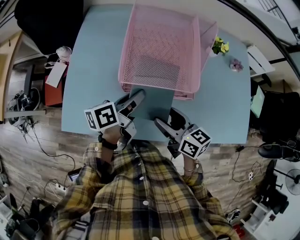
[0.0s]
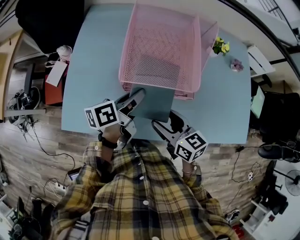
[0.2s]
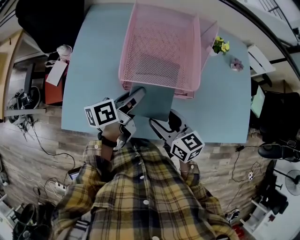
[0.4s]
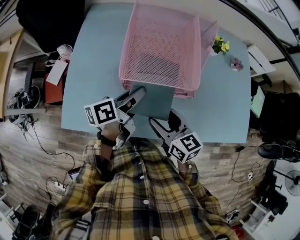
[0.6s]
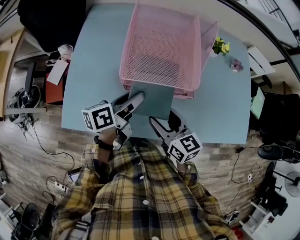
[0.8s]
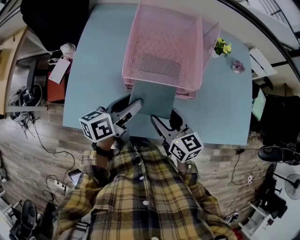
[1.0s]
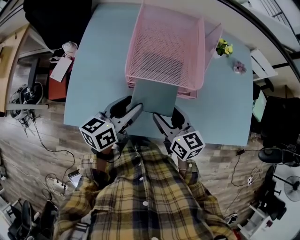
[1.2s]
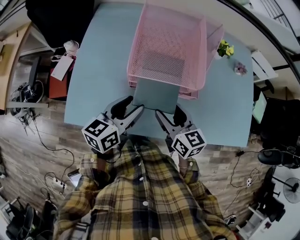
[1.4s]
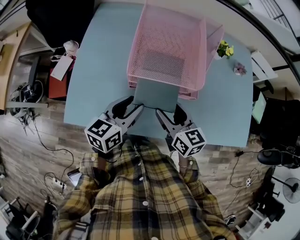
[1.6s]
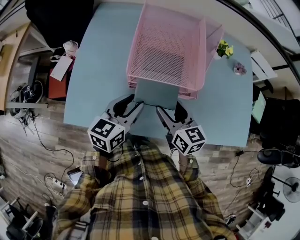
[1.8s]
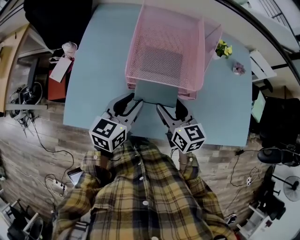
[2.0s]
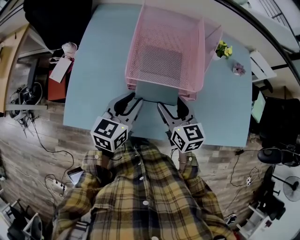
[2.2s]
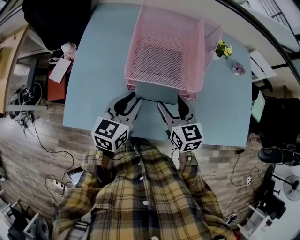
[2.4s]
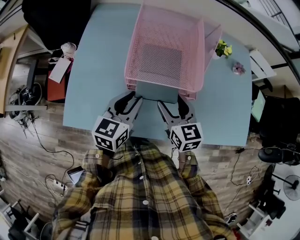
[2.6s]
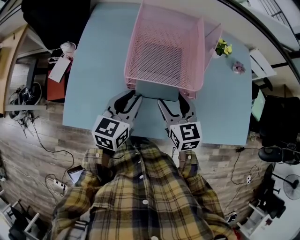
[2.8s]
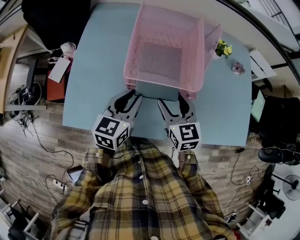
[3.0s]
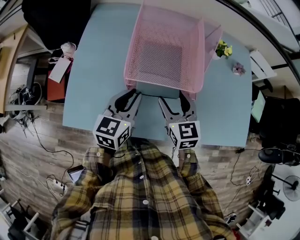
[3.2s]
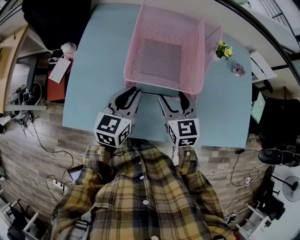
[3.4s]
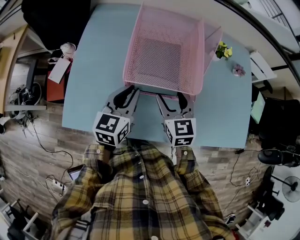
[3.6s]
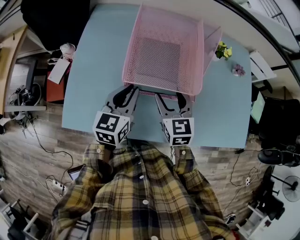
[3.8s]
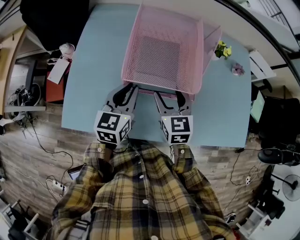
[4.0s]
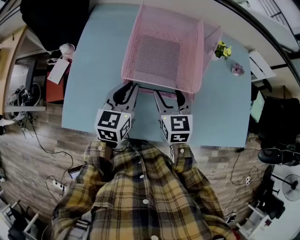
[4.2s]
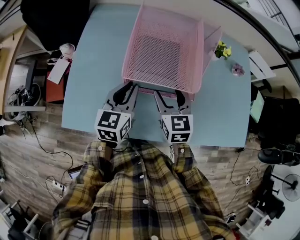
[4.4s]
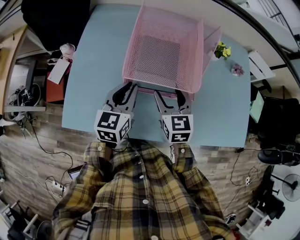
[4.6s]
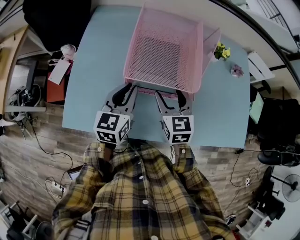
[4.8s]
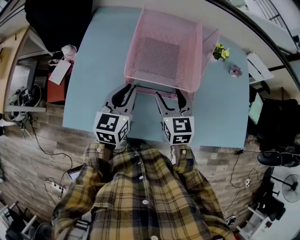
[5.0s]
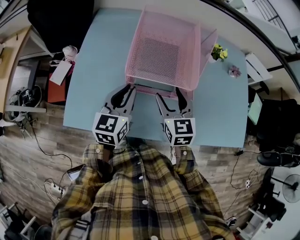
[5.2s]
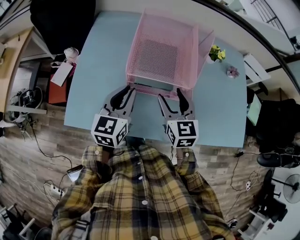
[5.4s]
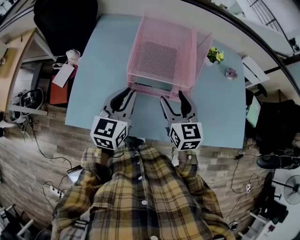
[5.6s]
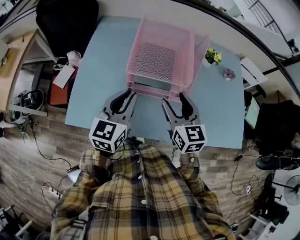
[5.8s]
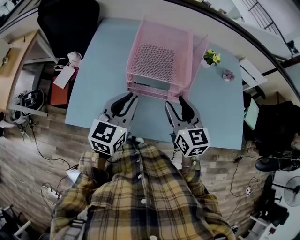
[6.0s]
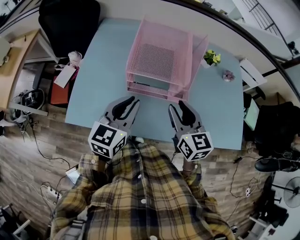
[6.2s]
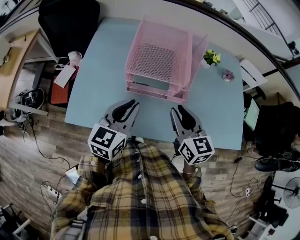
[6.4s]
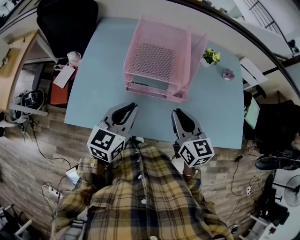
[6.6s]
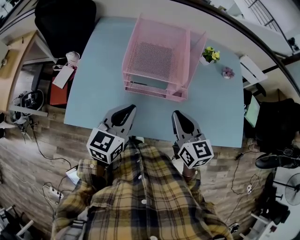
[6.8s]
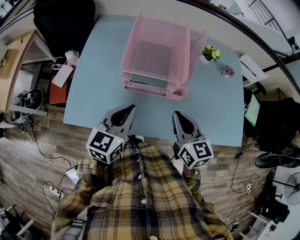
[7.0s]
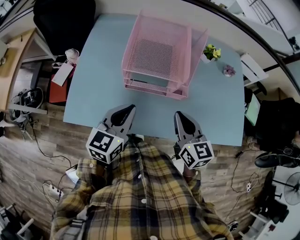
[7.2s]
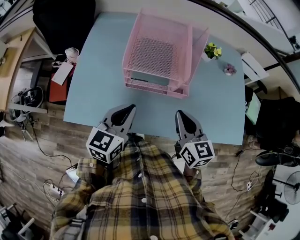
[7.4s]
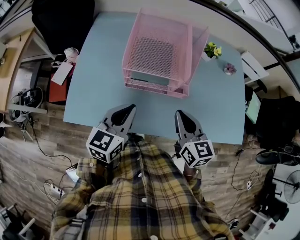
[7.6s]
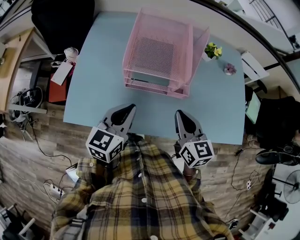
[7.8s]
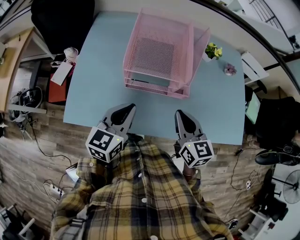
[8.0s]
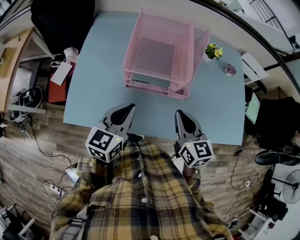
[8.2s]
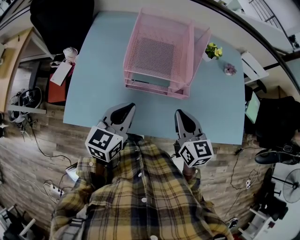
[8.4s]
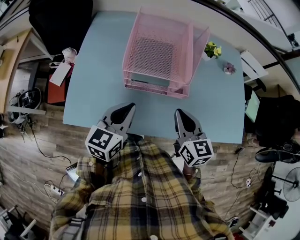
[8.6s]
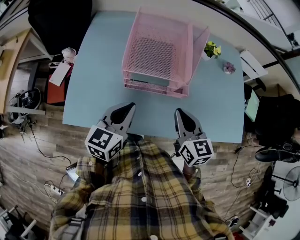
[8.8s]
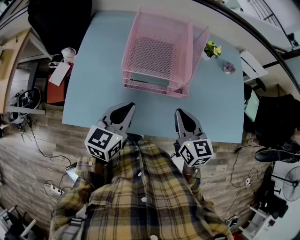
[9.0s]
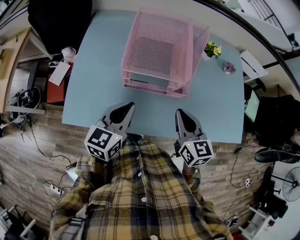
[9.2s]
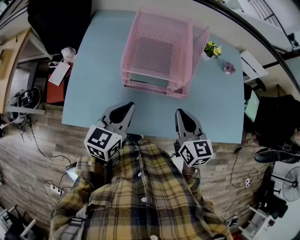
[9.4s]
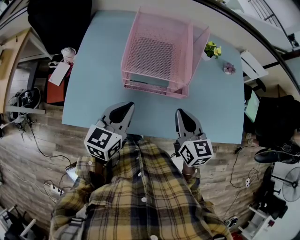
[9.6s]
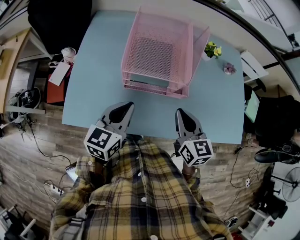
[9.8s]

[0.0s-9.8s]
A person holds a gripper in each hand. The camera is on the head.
0.0s to 1.4s: The left gripper goes approximately 5 cm backward, turns by about 30 degrees, and opens.
1.4s to 2.8s: The left gripper closes its fingers.
2.8s to 4.2s: There are only small adjustments of the grippers.
4.2s to 5.6s: The right gripper shifts some 5 cm upward and backward, while the left gripper shifts some 10 cm backward and upward.
5.6s to 7.0s: The two grippers go approximately 5 cm backward. The right gripper closes.
7.0s to 8.4s: The grippers stay close to where they were, moving slightly.
8.4s to 9.8s: Both grippers stay about where they are.

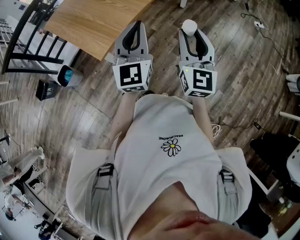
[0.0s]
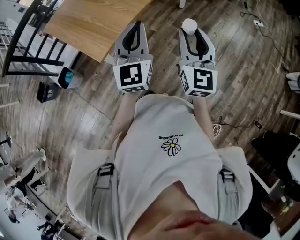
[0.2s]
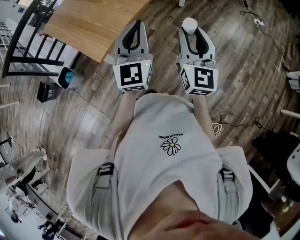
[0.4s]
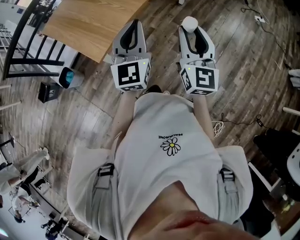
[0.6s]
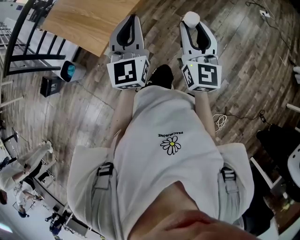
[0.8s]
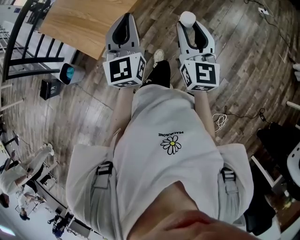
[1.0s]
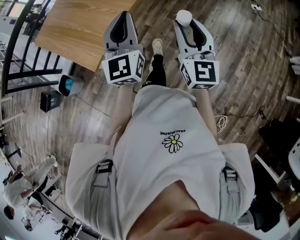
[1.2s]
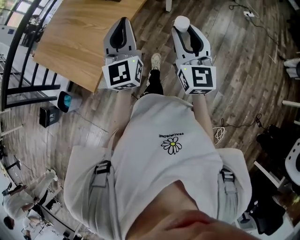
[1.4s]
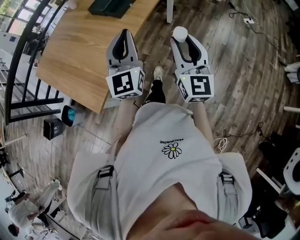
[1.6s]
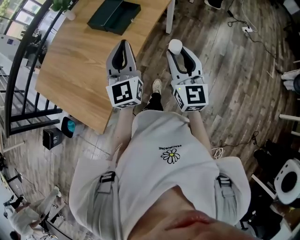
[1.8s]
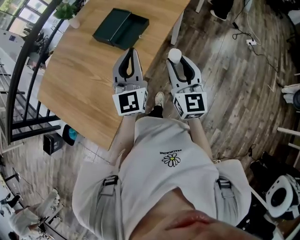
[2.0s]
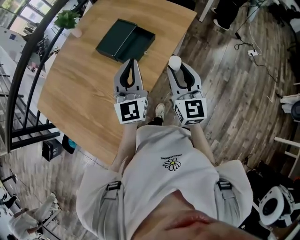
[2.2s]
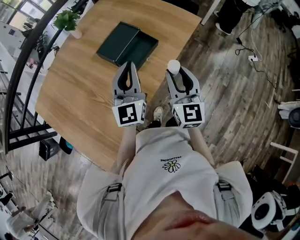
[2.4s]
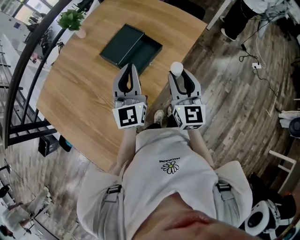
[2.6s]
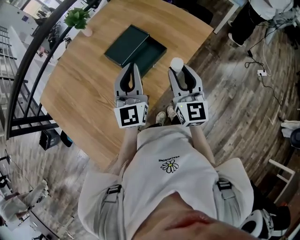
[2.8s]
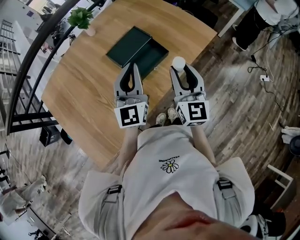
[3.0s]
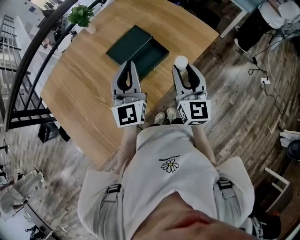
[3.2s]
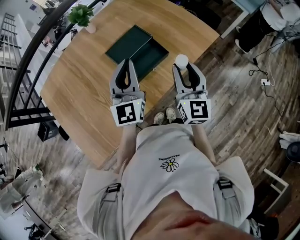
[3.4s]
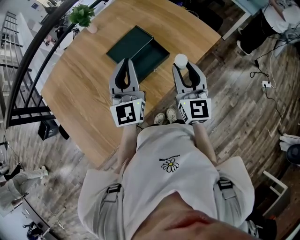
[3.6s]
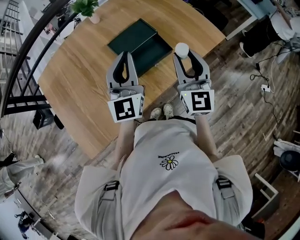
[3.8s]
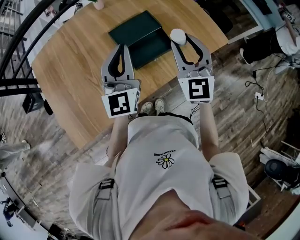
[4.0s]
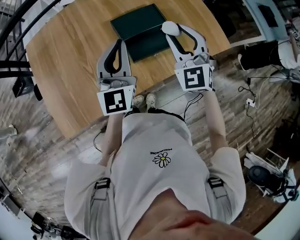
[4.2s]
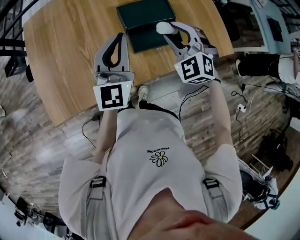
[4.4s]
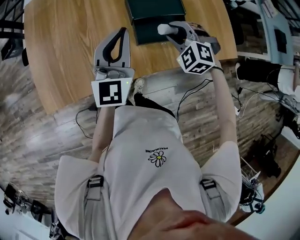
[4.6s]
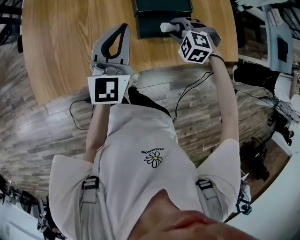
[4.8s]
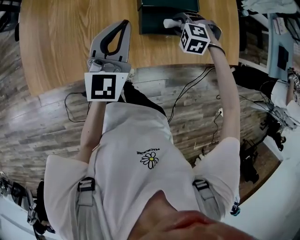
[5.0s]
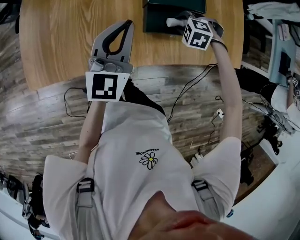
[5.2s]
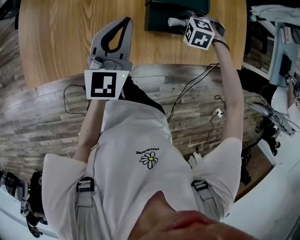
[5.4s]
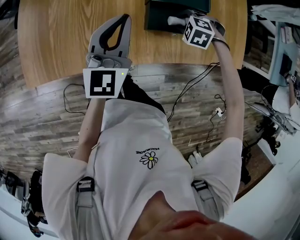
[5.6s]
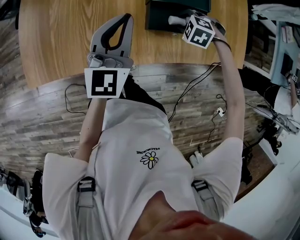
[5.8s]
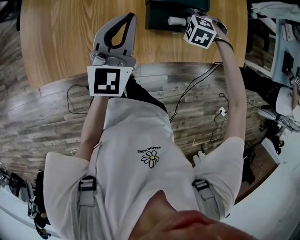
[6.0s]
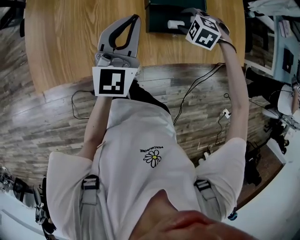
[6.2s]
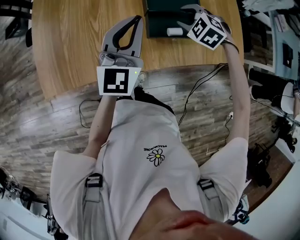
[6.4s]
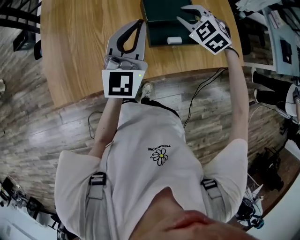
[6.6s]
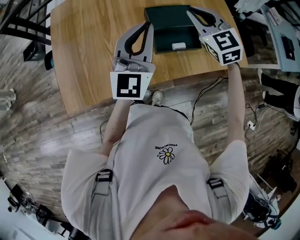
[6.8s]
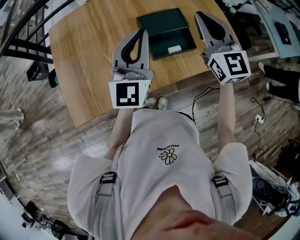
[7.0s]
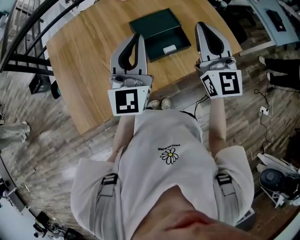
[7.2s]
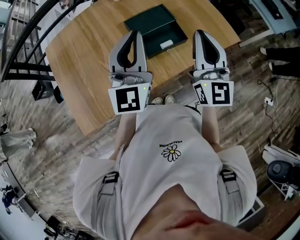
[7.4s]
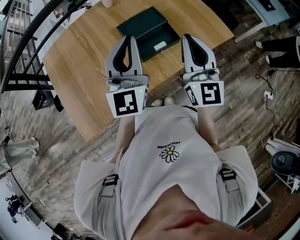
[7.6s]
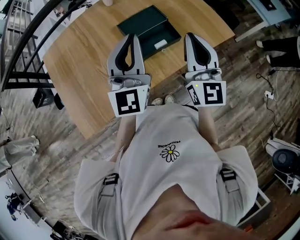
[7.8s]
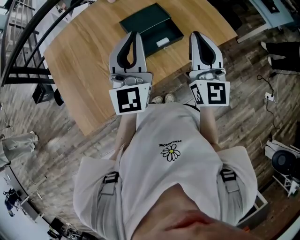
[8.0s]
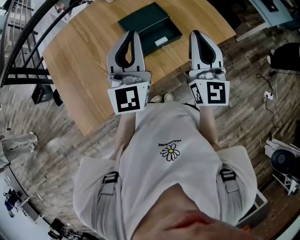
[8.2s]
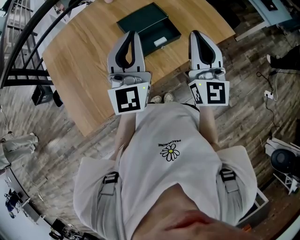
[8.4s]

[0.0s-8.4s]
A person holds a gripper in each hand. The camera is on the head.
0.0s to 1.4s: The grippers both shift forward by roughly 10 cm.
1.4s to 2.8s: Both grippers travel together forward, approximately 40 cm.
2.8s to 4.2s: The left gripper moves roughly 5 cm, and rotates roughly 20 degrees; the right gripper moves some 15 cm, and swivels some 50 degrees.
4.2s to 5.6s: The right gripper heads downward, covering approximately 30 cm, and tips its fingers downward by roughly 70 degrees, while the left gripper travels downward by some 10 cm.
5.6s to 7.0s: The left gripper travels upward by some 15 cm, and turns by some 20 degrees, while the right gripper moves upward, roughly 40 cm, angles its fingers upward, by approximately 80 degrees, and closes its fingers.
7.0s to 8.4s: The left gripper is displaced to the right by approximately 5 cm. Meanwhile the right gripper travels backward and to the right by approximately 15 cm, and turns by about 30 degrees.

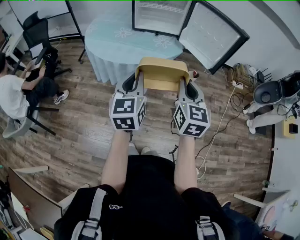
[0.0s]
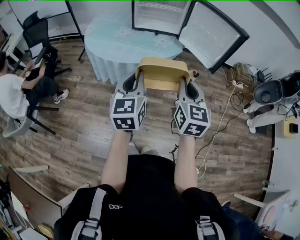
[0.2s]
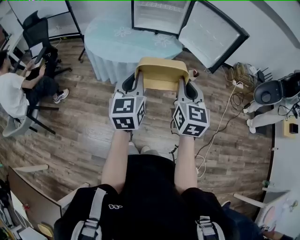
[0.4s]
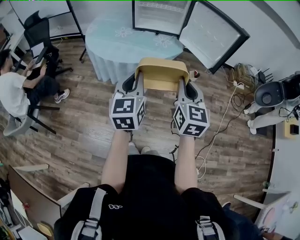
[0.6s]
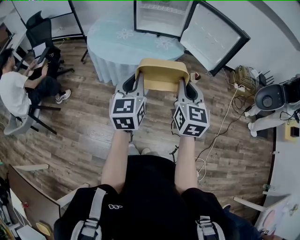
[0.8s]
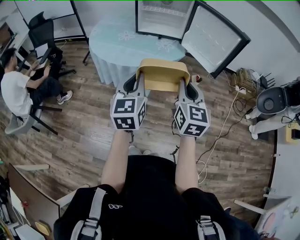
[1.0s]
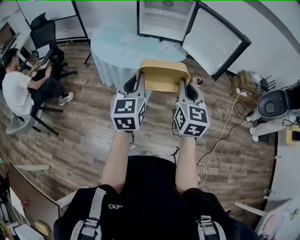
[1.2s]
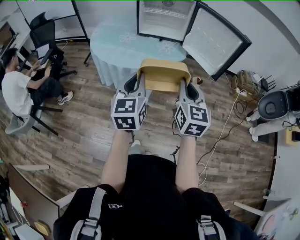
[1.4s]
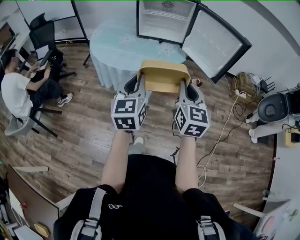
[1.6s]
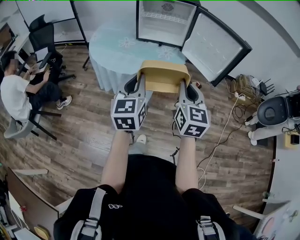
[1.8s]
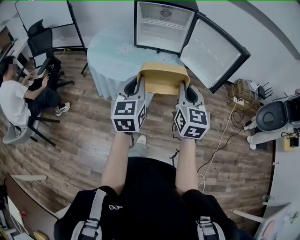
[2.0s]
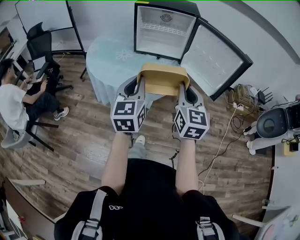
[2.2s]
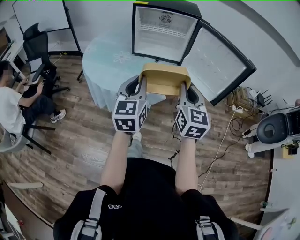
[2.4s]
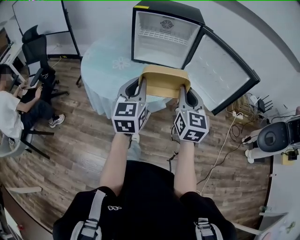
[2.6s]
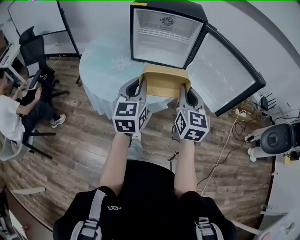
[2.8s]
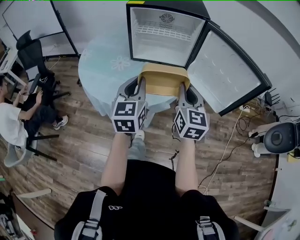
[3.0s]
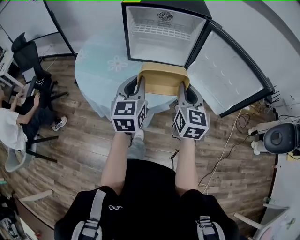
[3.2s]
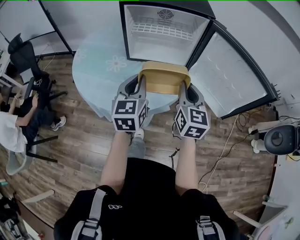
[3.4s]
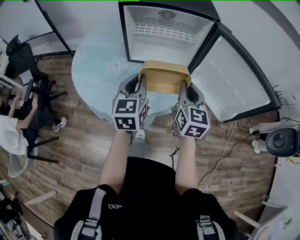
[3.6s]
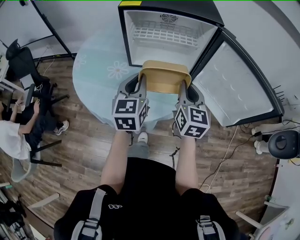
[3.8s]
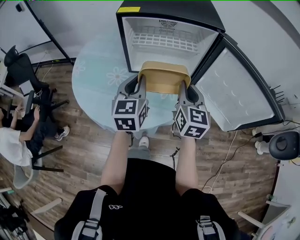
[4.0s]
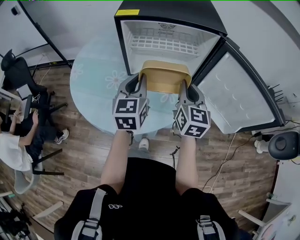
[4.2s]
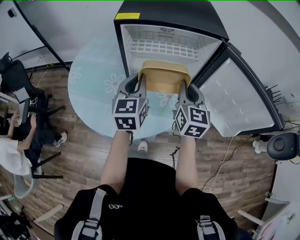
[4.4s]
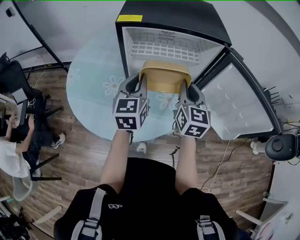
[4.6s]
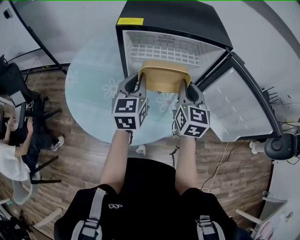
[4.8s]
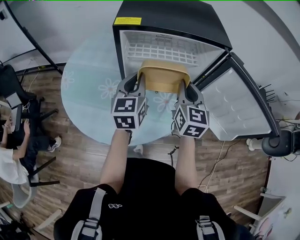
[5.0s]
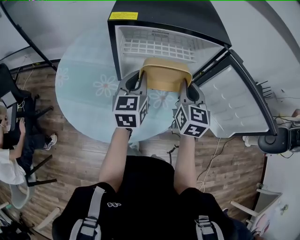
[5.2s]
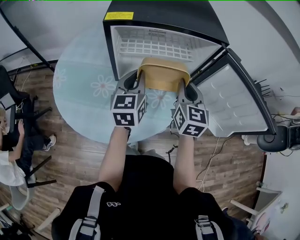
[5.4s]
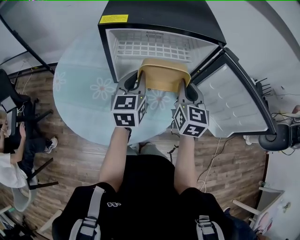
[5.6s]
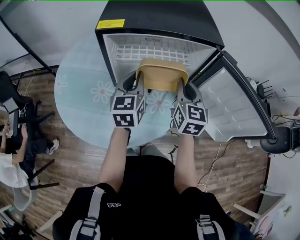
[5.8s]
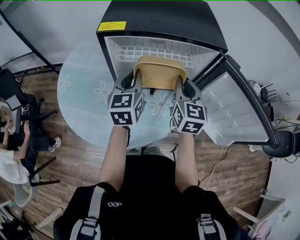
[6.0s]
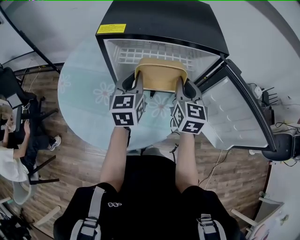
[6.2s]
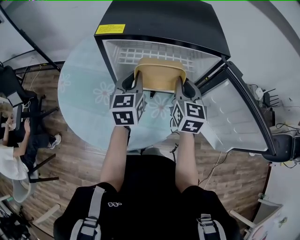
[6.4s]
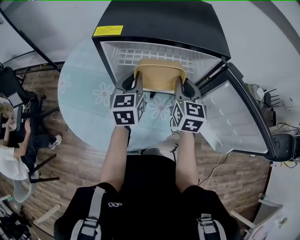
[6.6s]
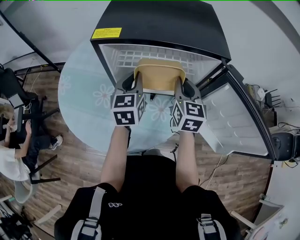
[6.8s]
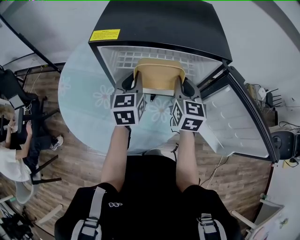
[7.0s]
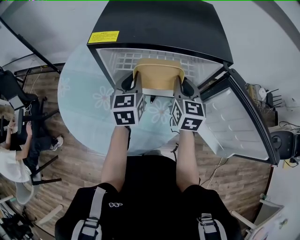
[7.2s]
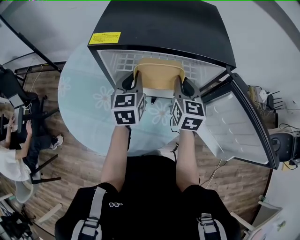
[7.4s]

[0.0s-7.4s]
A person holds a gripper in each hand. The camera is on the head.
0.0s to 1.4s: There are only small adjustments of the grippers.
1.4s to 3.0s: Both grippers travel together forward, about 30 cm.
3.0s to 4.4s: The grippers both shift forward by about 20 cm.
4.4s to 6.0s: The grippers both shift forward by some 10 cm.
6.0s to 7.4s: Both grippers travel together forward, approximately 5 cm.
